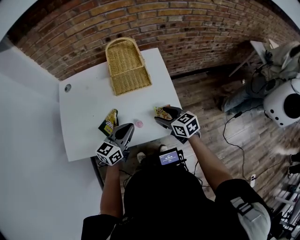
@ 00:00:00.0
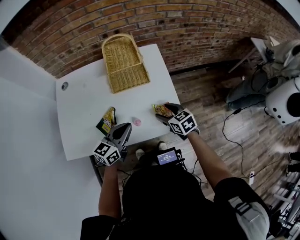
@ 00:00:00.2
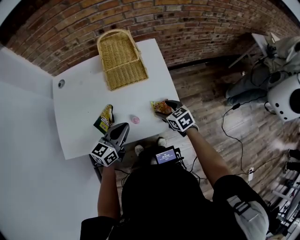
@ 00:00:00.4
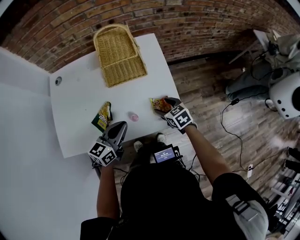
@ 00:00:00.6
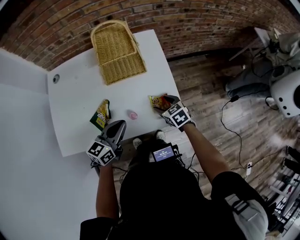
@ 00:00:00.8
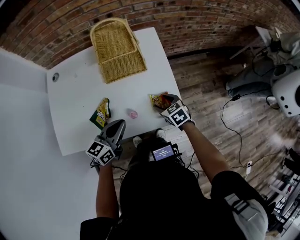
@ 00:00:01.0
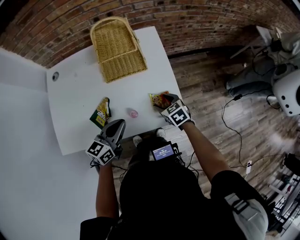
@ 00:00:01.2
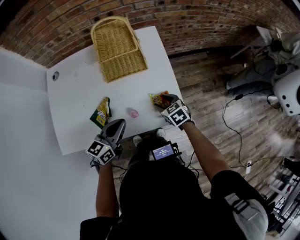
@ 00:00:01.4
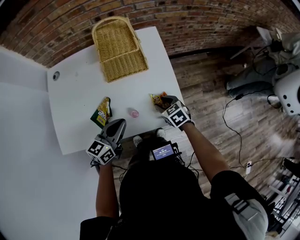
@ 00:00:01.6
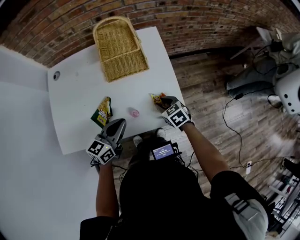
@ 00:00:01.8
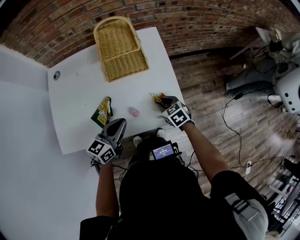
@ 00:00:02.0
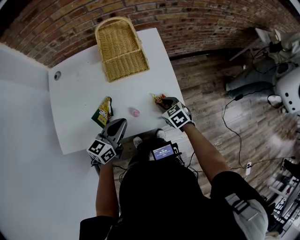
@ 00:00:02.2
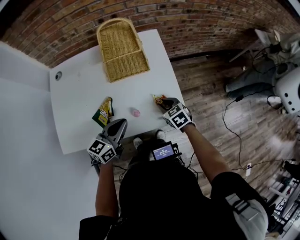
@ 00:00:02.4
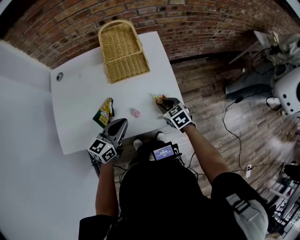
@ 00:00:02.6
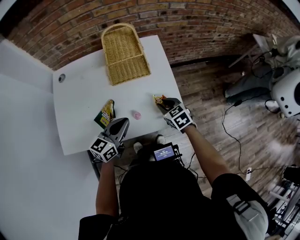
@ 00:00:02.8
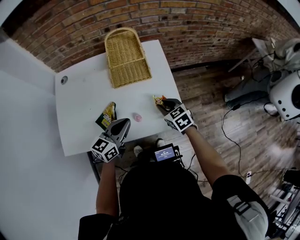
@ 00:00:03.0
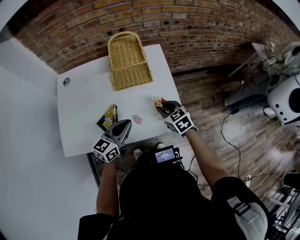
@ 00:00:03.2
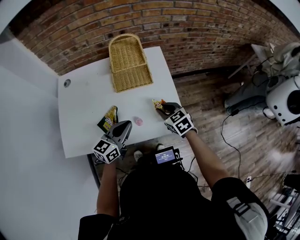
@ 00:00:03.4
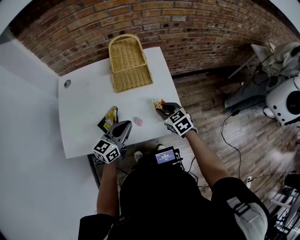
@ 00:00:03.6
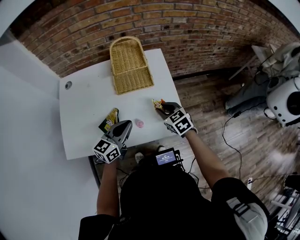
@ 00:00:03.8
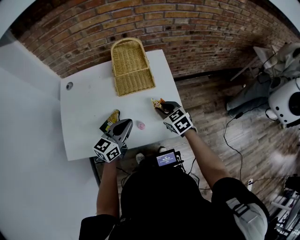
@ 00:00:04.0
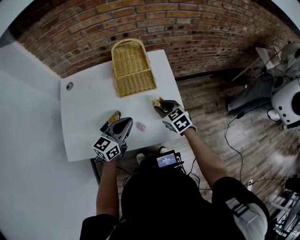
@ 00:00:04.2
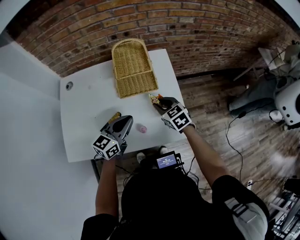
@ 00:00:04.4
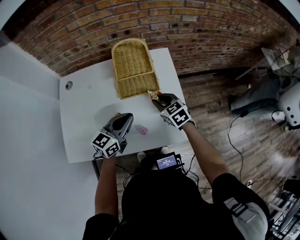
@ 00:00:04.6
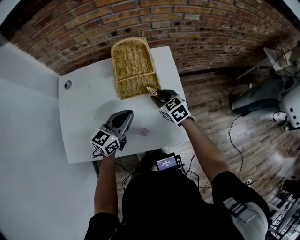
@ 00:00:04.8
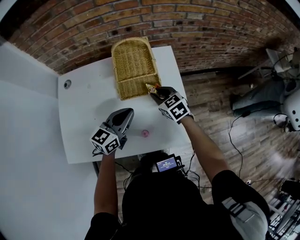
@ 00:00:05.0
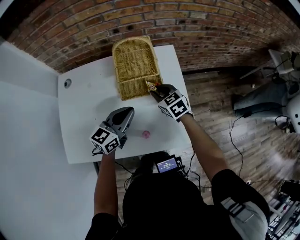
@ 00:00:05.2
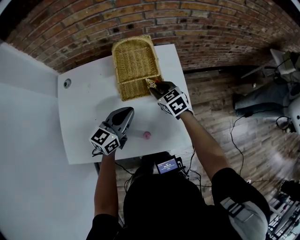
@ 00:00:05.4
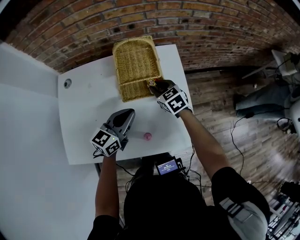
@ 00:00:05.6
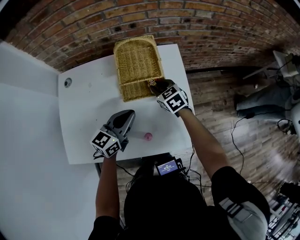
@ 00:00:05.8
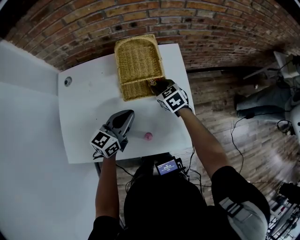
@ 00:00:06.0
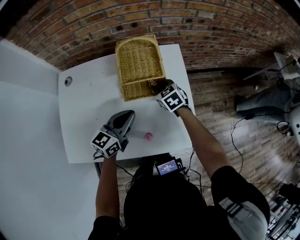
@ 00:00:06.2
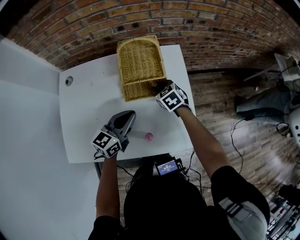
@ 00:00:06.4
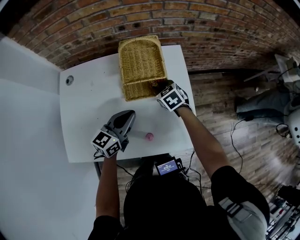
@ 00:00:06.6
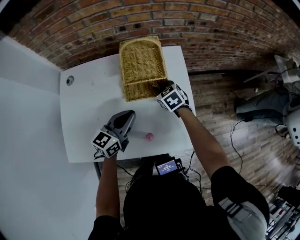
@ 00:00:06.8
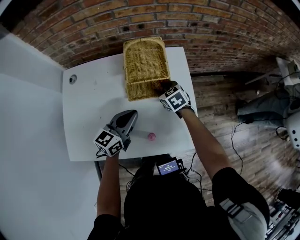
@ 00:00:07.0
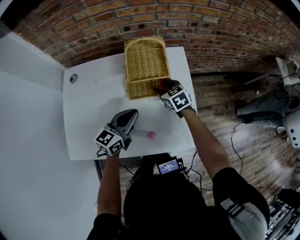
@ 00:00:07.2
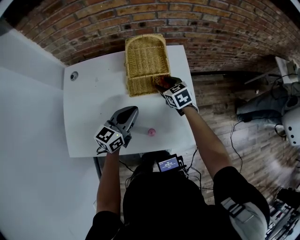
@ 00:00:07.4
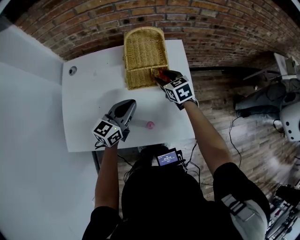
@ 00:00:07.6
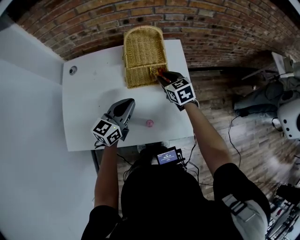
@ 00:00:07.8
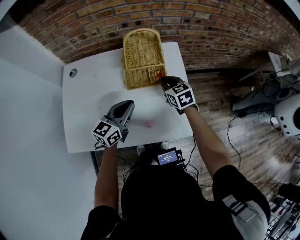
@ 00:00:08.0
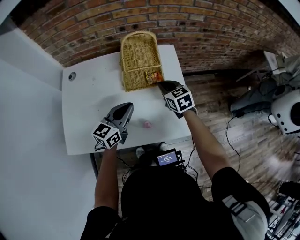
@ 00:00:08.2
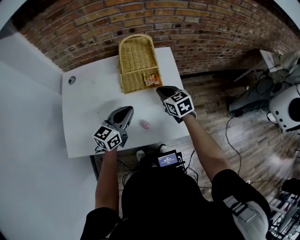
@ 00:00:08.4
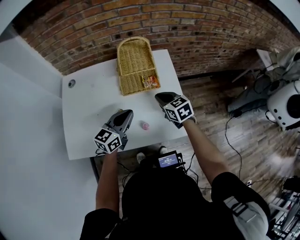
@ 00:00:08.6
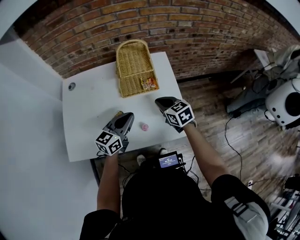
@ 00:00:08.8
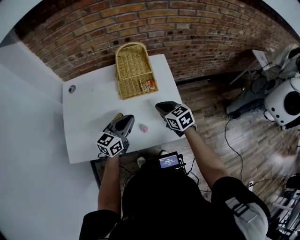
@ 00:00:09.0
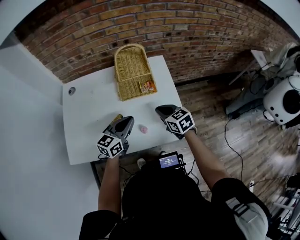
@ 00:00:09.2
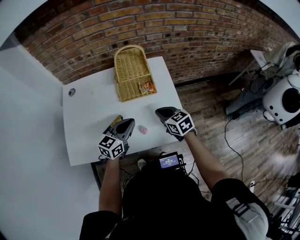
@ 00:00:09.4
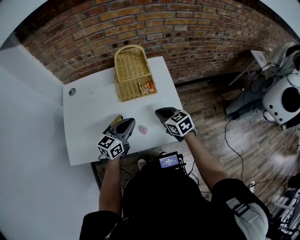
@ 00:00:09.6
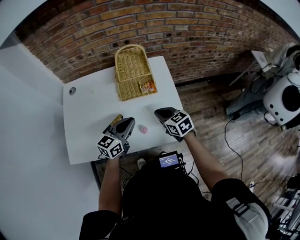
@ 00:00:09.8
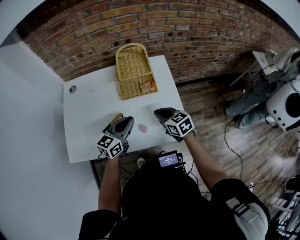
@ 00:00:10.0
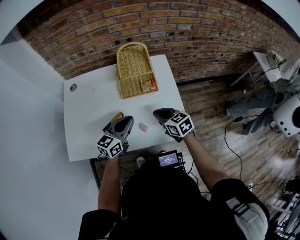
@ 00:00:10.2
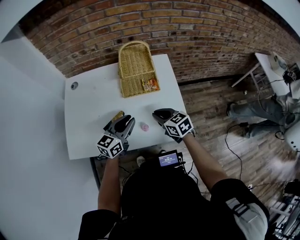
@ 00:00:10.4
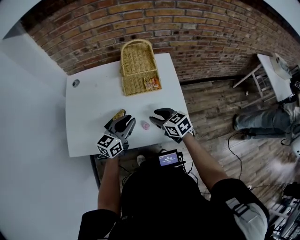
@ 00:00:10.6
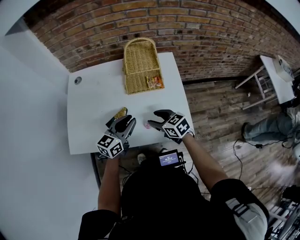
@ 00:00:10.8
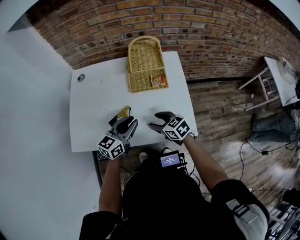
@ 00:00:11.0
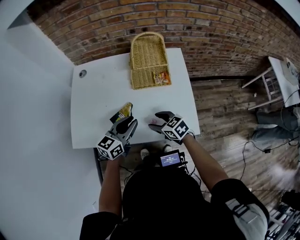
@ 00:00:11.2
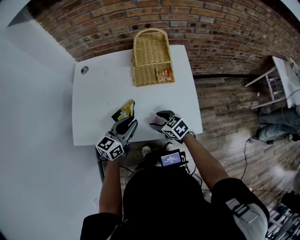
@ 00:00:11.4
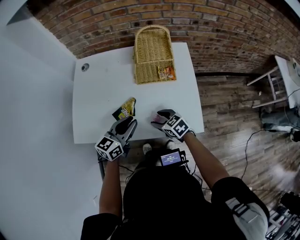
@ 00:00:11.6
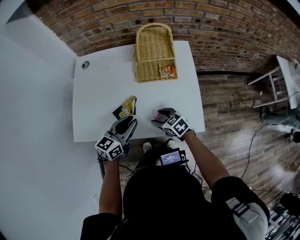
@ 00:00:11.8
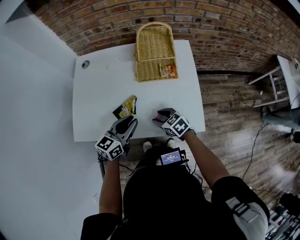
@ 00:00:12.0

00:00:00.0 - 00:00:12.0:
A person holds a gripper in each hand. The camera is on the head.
00:00:00.0 - 00:00:01.6: The right gripper shifts some 10 cm downward, and swivels some 20 degrees.
00:00:01.6 - 00:00:03.0: The right gripper travels upward by some 5 cm.
00:00:03.0 - 00:00:04.4: Both grippers travel together forward, some 5 cm.
00:00:04.4 - 00:00:06.0: The right gripper heads forward, covering roughly 10 cm. The left gripper moves forward, about 5 cm.
00:00:06.0 - 00:00:07.6: The right gripper opens its fingers.
00:00:07.6 - 00:00:09.0: The right gripper heads backward, covering approximately 15 cm, and closes, while the left gripper is displaced backward by about 5 cm.
00:00:09.0 - 00:00:10.4: There are only small adjustments of the grippers.
00:00:10.4 - 00:00:12.0: The right gripper shifts approximately 10 cm downward and to the left, and opens; the left gripper heads to the left, covering roughly 5 cm.

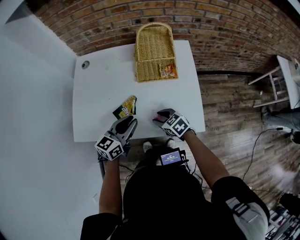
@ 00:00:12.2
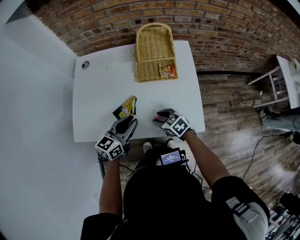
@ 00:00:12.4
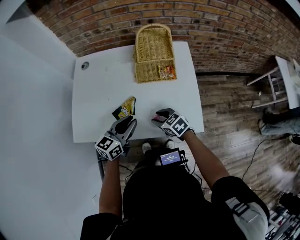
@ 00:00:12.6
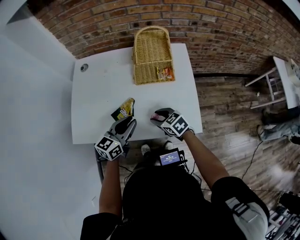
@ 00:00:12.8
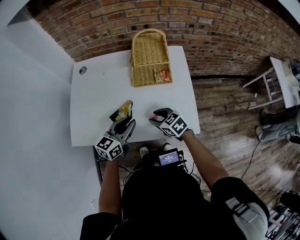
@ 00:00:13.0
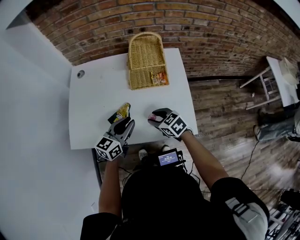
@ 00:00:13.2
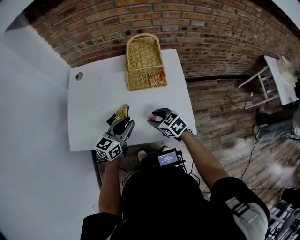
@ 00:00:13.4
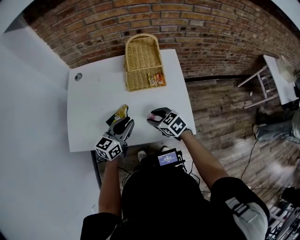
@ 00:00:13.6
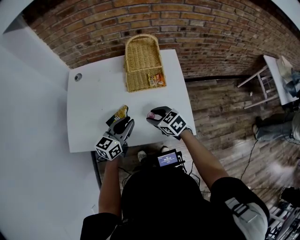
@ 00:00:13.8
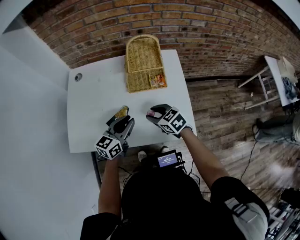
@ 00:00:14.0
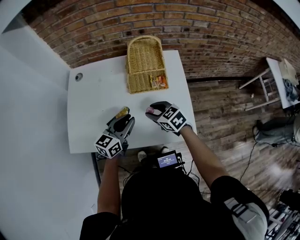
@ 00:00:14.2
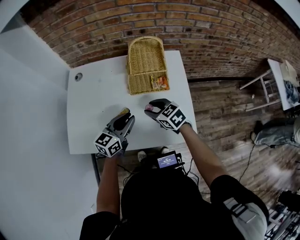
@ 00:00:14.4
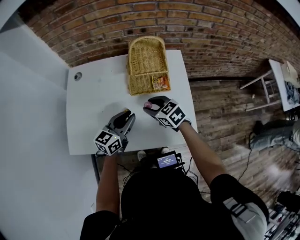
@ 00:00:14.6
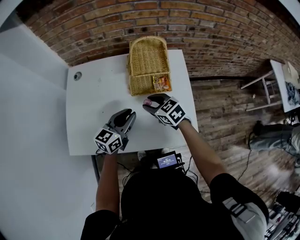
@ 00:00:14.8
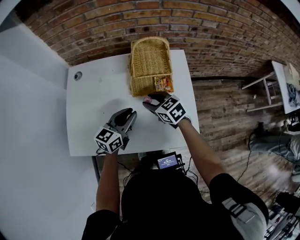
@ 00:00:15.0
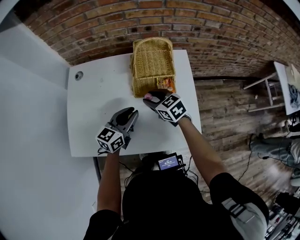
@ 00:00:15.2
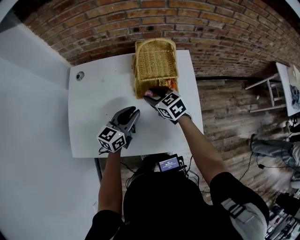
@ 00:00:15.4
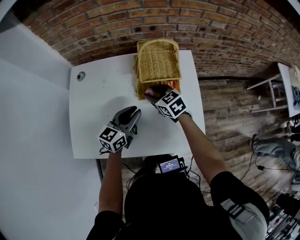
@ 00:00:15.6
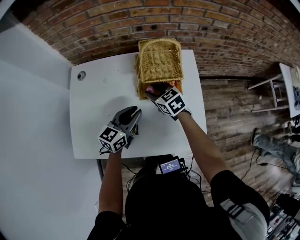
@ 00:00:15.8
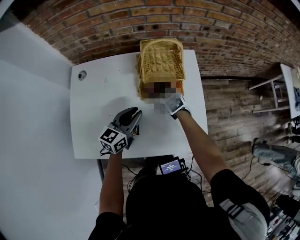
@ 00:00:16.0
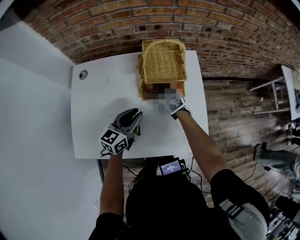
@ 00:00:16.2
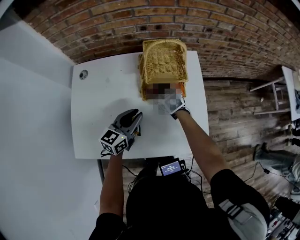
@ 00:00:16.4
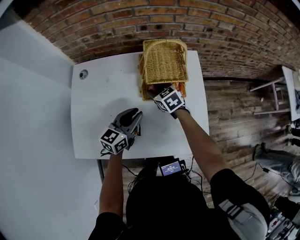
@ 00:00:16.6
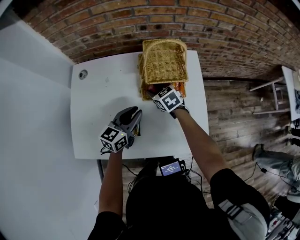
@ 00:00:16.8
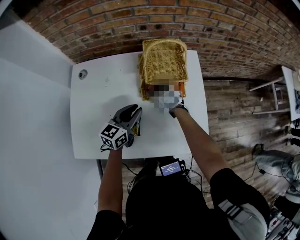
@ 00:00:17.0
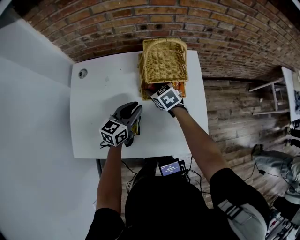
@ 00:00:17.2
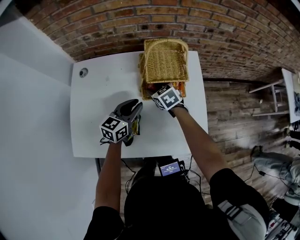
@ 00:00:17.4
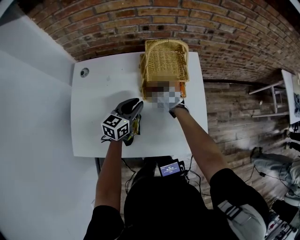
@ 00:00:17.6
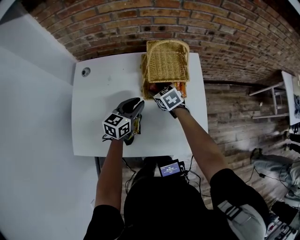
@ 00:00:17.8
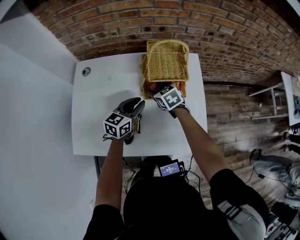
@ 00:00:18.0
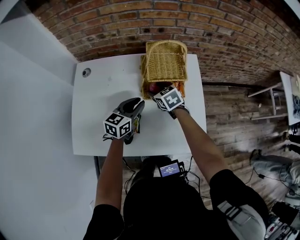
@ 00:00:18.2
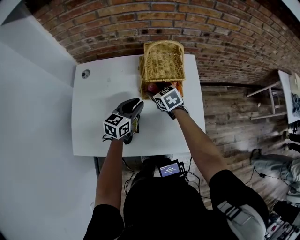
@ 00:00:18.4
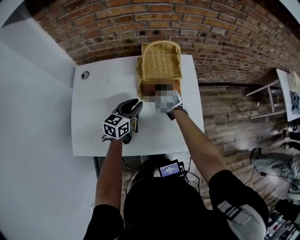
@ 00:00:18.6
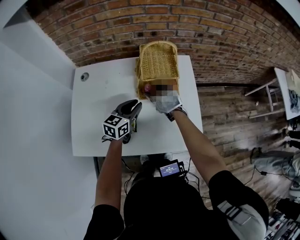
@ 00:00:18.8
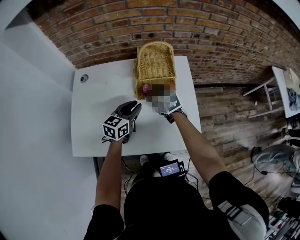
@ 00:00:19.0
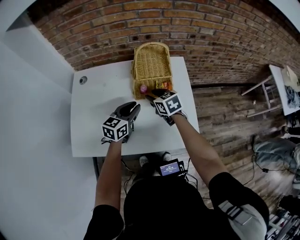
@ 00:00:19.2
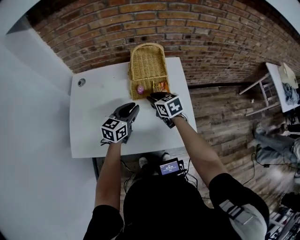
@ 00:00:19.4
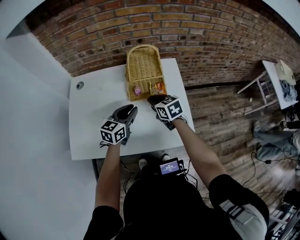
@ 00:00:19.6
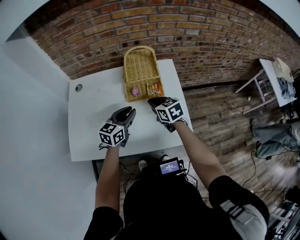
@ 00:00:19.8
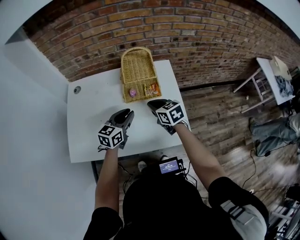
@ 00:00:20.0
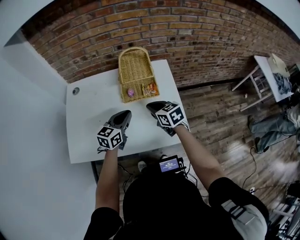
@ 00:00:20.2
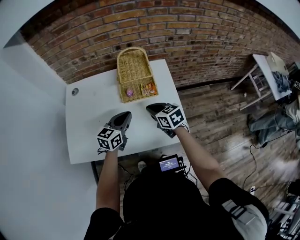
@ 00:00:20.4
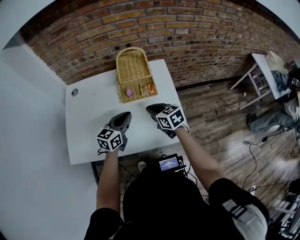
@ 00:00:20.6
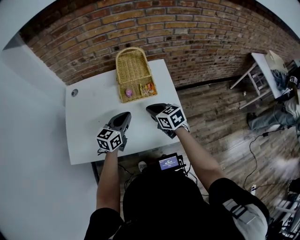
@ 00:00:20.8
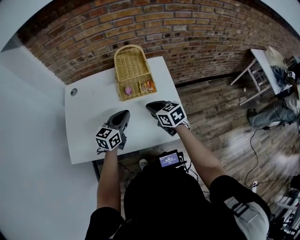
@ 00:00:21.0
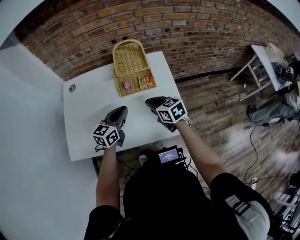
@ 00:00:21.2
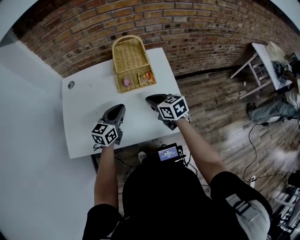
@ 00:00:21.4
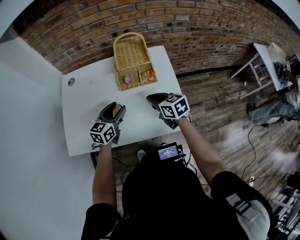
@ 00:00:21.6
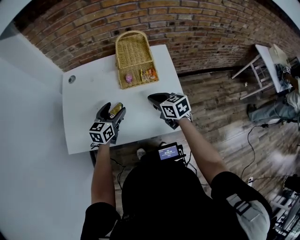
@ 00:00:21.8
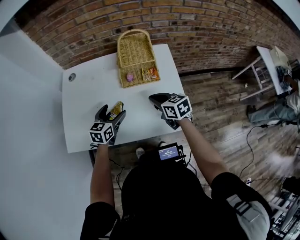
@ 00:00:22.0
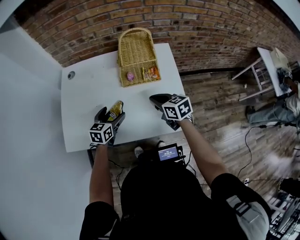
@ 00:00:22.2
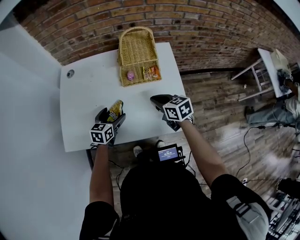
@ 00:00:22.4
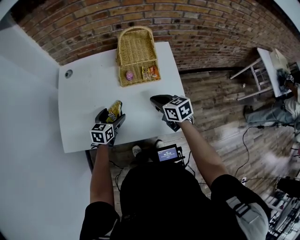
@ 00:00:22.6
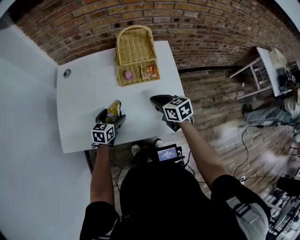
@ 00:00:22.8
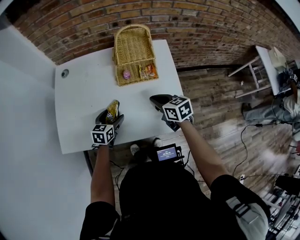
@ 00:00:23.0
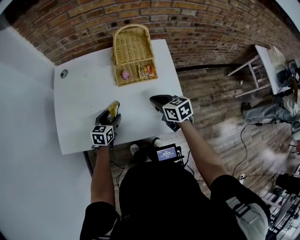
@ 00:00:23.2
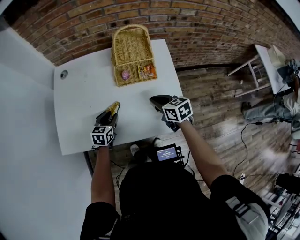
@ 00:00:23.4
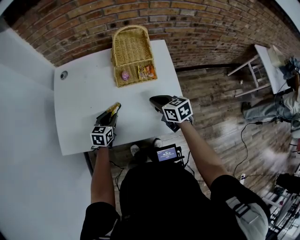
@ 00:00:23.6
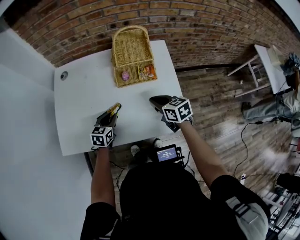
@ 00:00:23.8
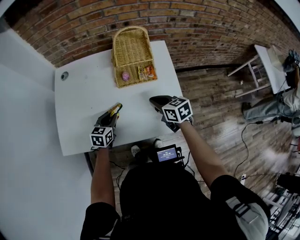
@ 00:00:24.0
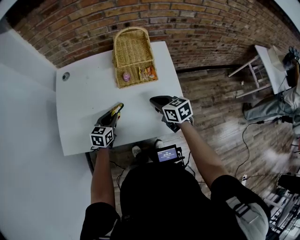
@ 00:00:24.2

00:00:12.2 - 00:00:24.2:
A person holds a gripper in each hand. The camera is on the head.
00:00:12.2 - 00:00:13.8: The right gripper is displaced upward by some 5 cm.
00:00:13.8 - 00:00:15.2: The right gripper is displaced forward by about 15 cm. The left gripper heads forward, covering roughly 10 cm.
00:00:15.2 - 00:00:16.6: The right gripper goes some 10 cm forward and downward.
00:00:16.6 - 00:00:18.2: The grippers make only small movements.
00:00:18.2 - 00:00:19.8: The left gripper is displaced backward by approximately 5 cm. The right gripper heads backward, upward and to the right, covering some 15 cm, and closes.
00:00:19.8 - 00:00:21.2: The right gripper moves backward, some 5 cm.
00:00:21.2 - 00:00:22.6: The left gripper shifts about 15 cm downward and to the left, changes its angle by roughly 20 degrees, and opens its fingers.
00:00:22.6 - 00:00:24.2: The left gripper closes its fingers.
